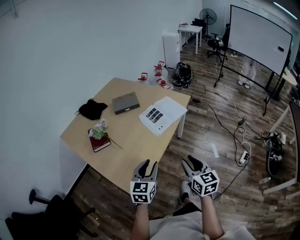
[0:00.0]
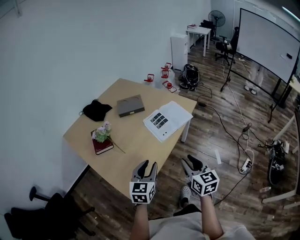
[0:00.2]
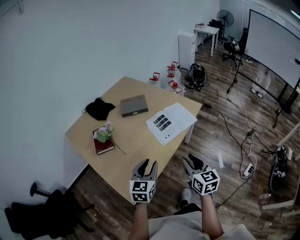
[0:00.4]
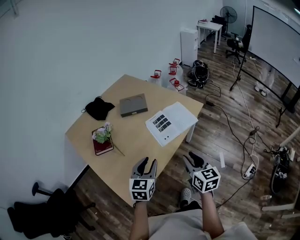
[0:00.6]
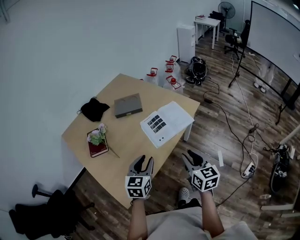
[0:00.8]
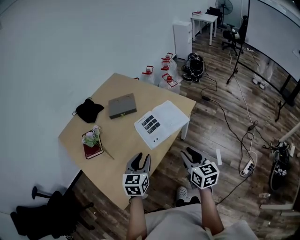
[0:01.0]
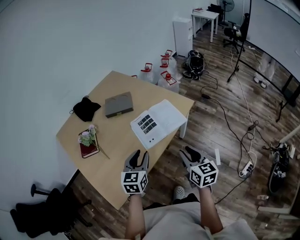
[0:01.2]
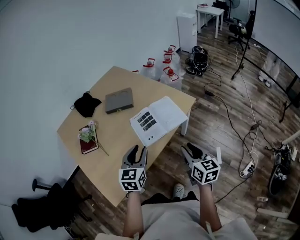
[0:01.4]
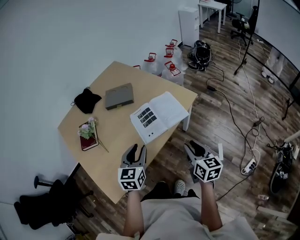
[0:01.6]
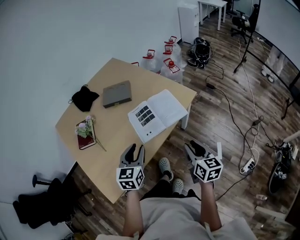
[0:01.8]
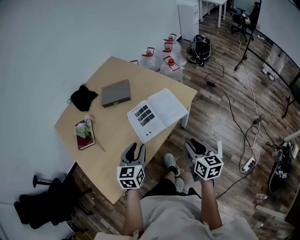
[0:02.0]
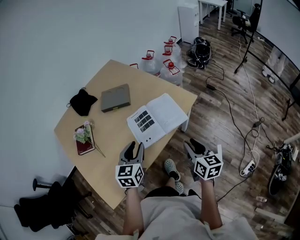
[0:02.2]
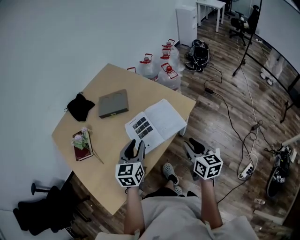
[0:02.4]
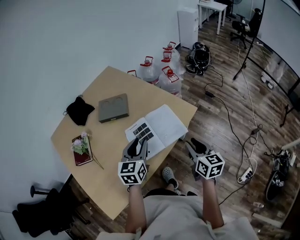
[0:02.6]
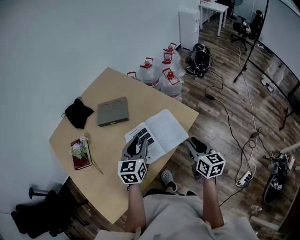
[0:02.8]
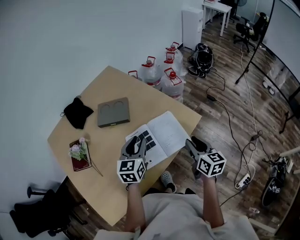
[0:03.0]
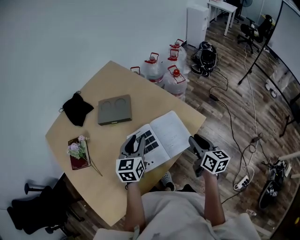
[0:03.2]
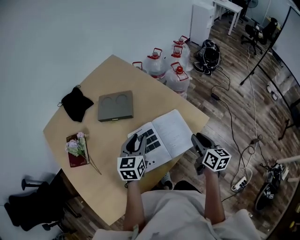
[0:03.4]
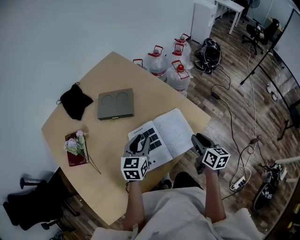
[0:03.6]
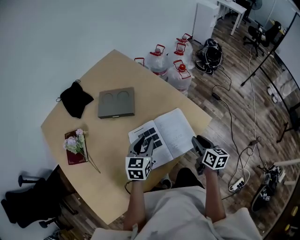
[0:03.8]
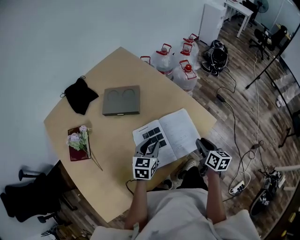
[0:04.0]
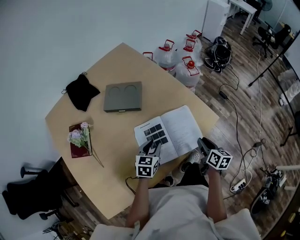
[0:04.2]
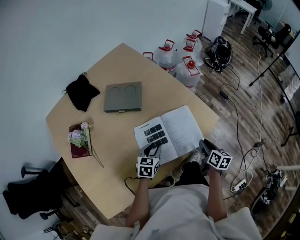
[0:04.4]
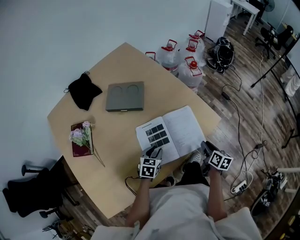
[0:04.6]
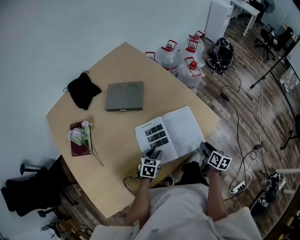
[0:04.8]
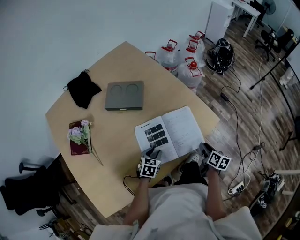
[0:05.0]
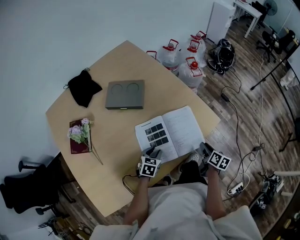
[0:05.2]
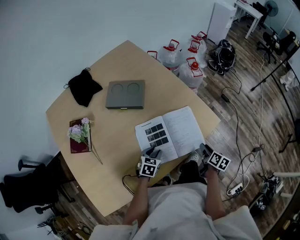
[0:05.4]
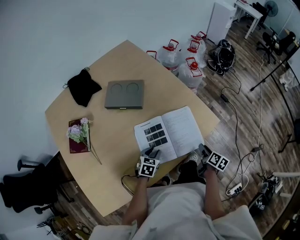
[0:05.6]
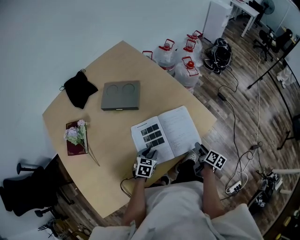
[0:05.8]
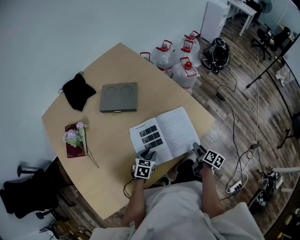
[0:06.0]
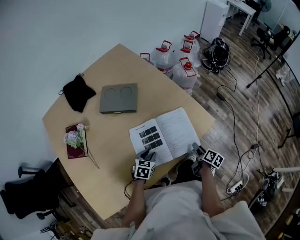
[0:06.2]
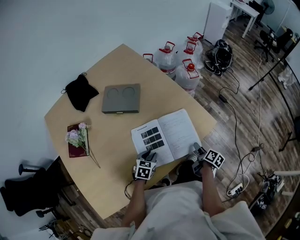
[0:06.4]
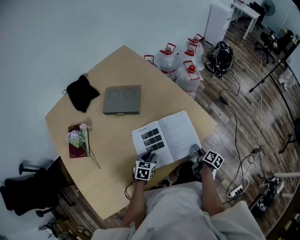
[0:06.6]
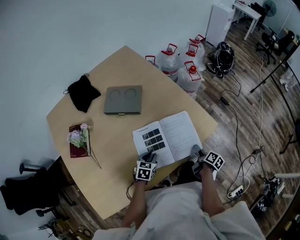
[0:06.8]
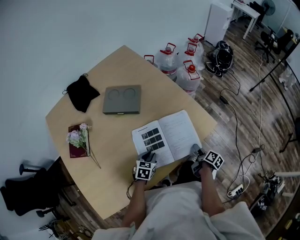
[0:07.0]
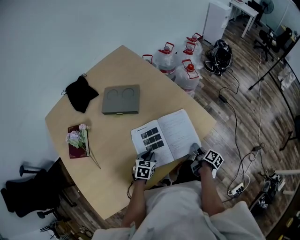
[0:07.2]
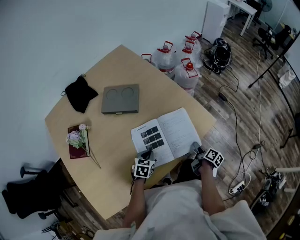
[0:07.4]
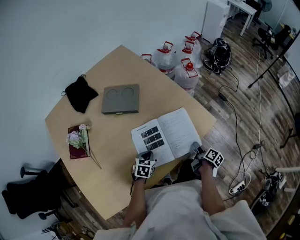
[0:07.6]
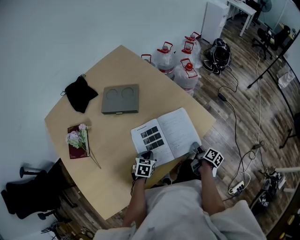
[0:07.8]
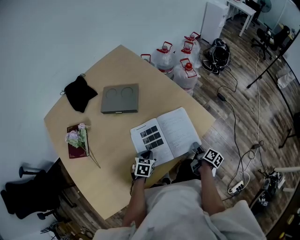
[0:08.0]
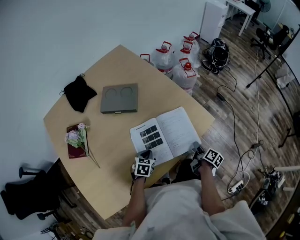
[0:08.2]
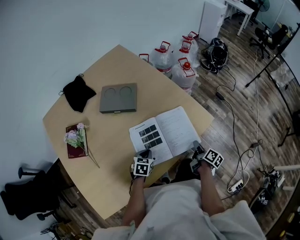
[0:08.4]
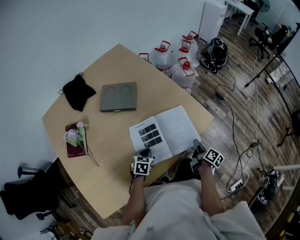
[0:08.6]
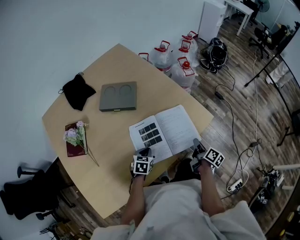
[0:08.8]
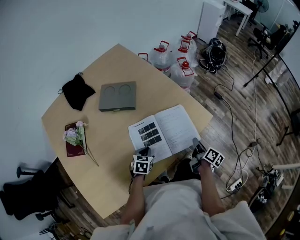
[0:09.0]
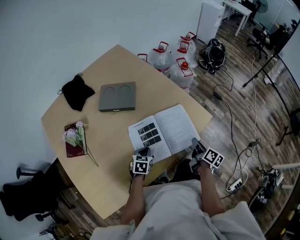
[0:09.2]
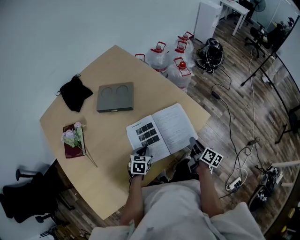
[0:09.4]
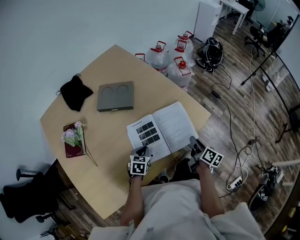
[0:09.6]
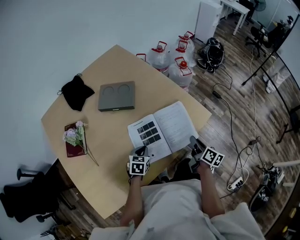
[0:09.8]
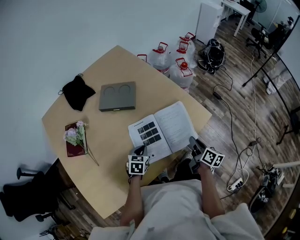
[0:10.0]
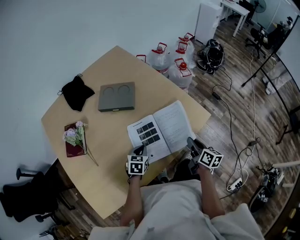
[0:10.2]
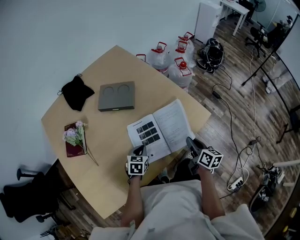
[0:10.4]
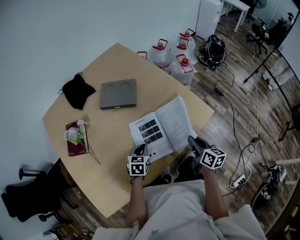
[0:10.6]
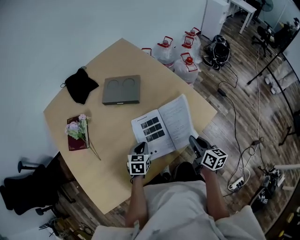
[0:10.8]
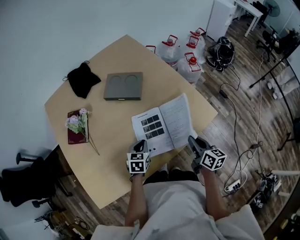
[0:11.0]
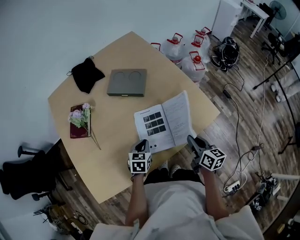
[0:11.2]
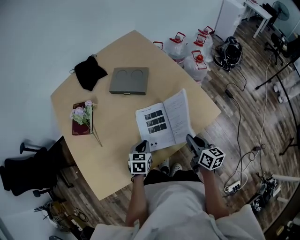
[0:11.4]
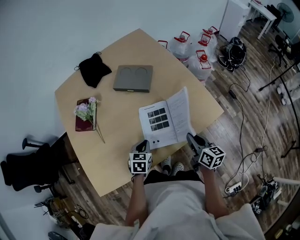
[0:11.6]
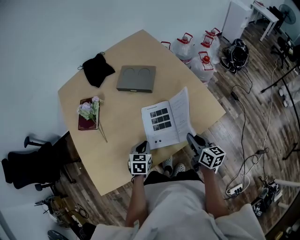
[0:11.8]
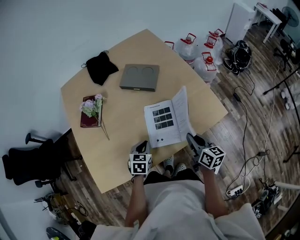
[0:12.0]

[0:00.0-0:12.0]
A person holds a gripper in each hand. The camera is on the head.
0.0 to 1.6 s: Both grippers move forward and to the right, approximately 30 cm.
1.6 to 3.0 s: The grippers both shift forward by about 25 cm.
3.0 to 4.4 s: The two grippers go about 20 cm downward. The left gripper changes its angle by some 20 degrees.
4.4 to 6.0 s: Both grippers travel together downward, approximately 5 cm. The right gripper swivels roughly 20 degrees, and opens its fingers.
6.0 to 7.6 s: The left gripper closes.
7.6 to 9.0 s: The right gripper moves upward, some 5 cm, and closes its fingers.
9.0 to 10.4 s: The right gripper shifts some 5 cm upward, and changes its angle by about 30 degrees.
10.4 to 12.0 s: The left gripper is displaced backward and to the left by about 10 cm. Meanwhile the right gripper heads to the left, covering roughly 5 cm.

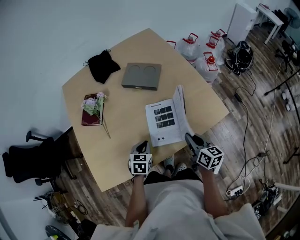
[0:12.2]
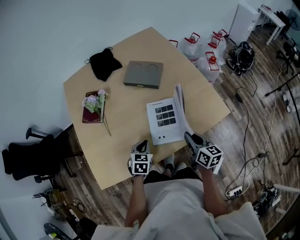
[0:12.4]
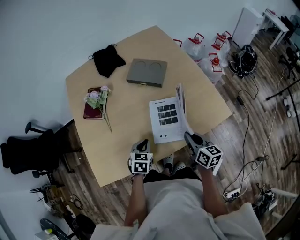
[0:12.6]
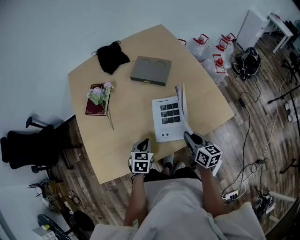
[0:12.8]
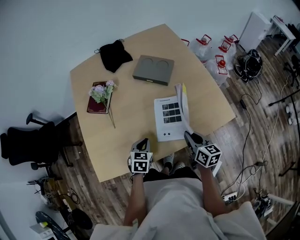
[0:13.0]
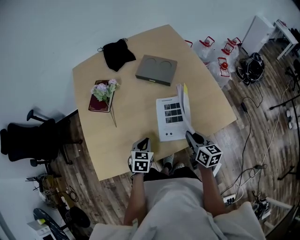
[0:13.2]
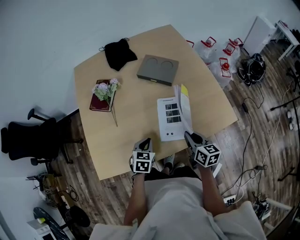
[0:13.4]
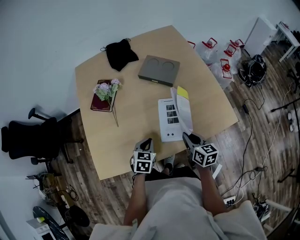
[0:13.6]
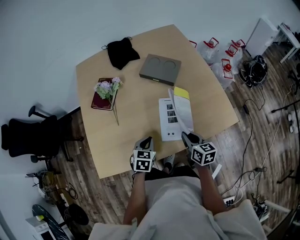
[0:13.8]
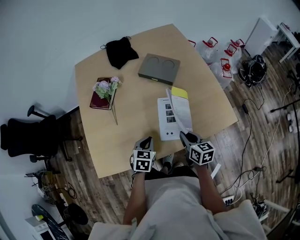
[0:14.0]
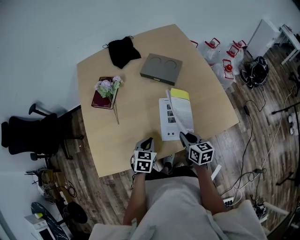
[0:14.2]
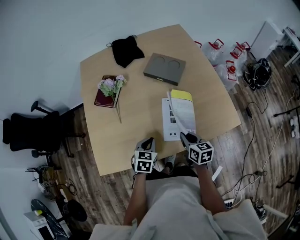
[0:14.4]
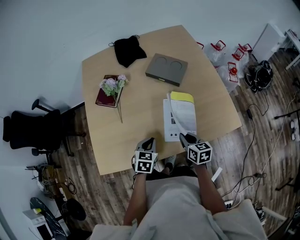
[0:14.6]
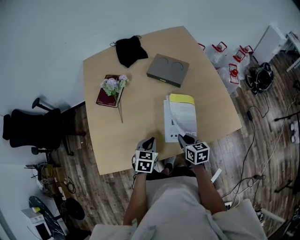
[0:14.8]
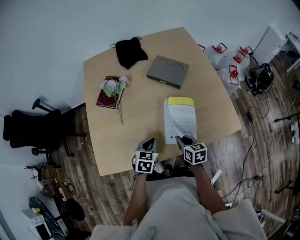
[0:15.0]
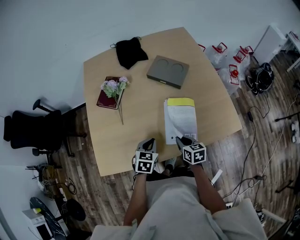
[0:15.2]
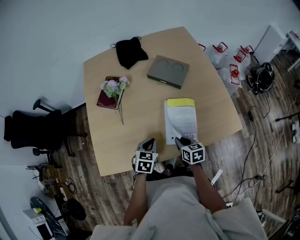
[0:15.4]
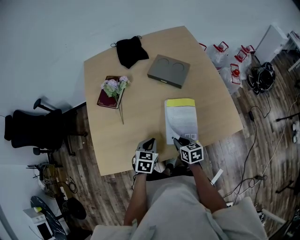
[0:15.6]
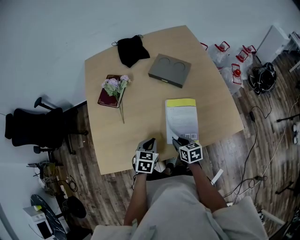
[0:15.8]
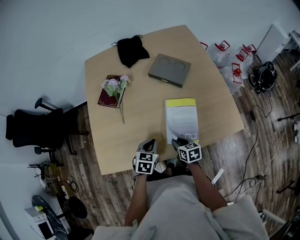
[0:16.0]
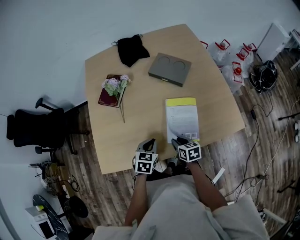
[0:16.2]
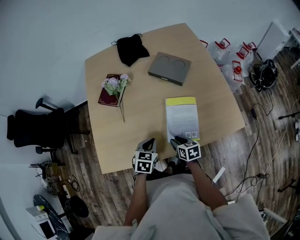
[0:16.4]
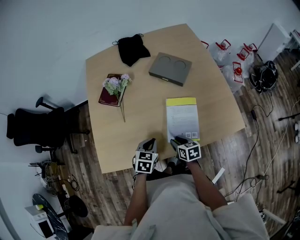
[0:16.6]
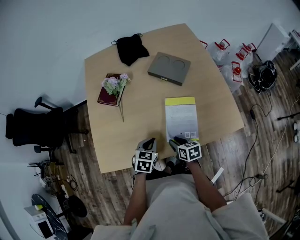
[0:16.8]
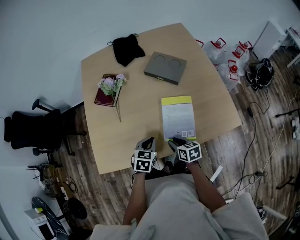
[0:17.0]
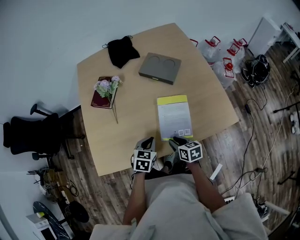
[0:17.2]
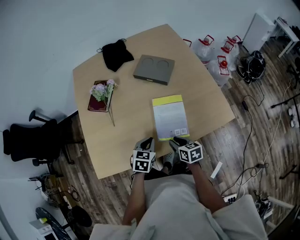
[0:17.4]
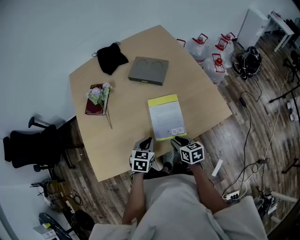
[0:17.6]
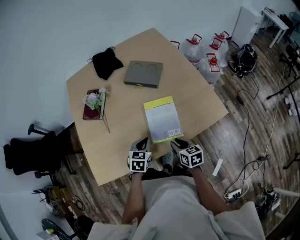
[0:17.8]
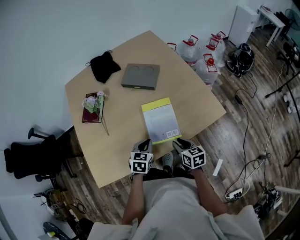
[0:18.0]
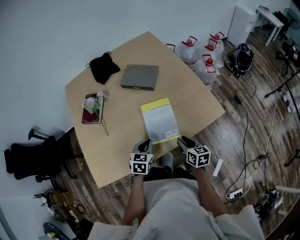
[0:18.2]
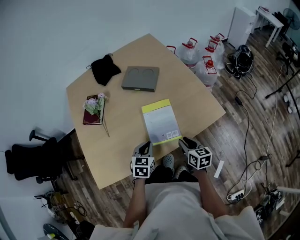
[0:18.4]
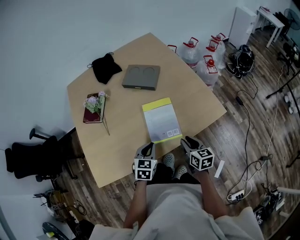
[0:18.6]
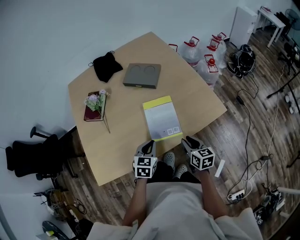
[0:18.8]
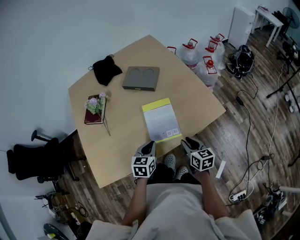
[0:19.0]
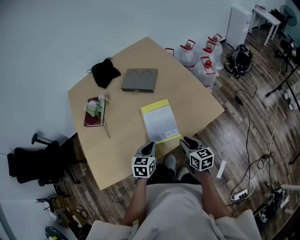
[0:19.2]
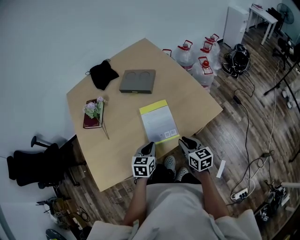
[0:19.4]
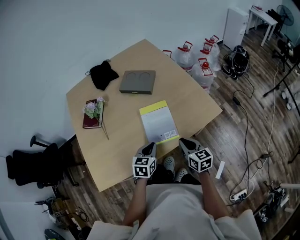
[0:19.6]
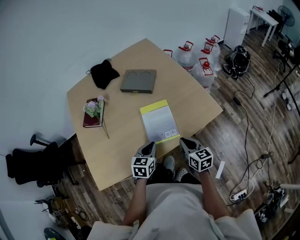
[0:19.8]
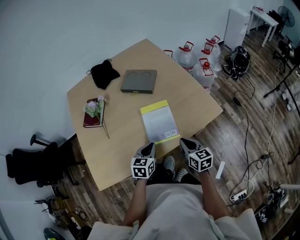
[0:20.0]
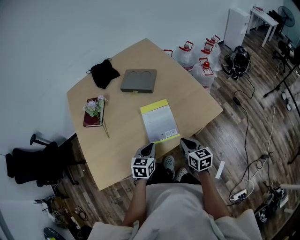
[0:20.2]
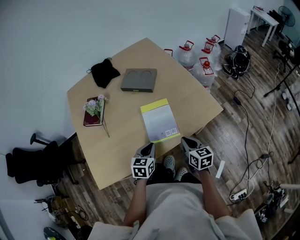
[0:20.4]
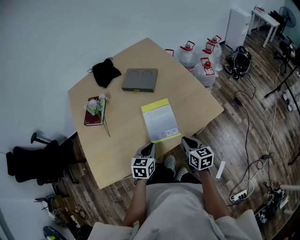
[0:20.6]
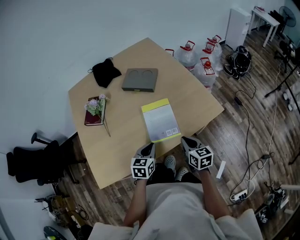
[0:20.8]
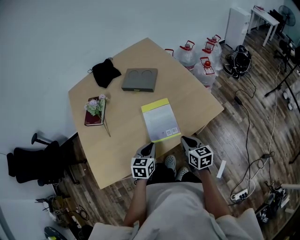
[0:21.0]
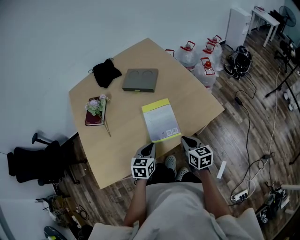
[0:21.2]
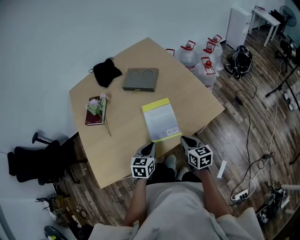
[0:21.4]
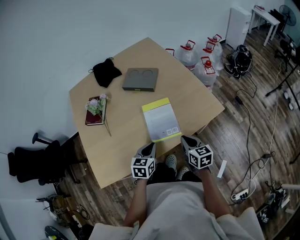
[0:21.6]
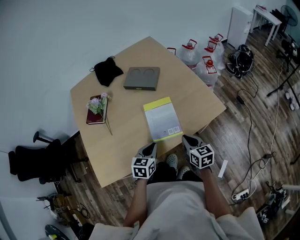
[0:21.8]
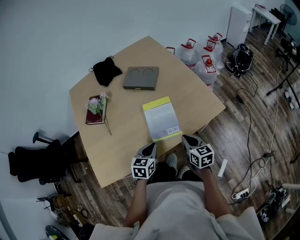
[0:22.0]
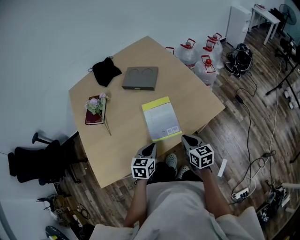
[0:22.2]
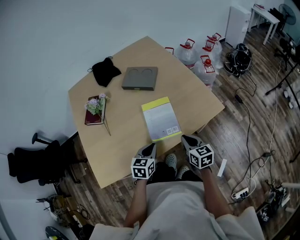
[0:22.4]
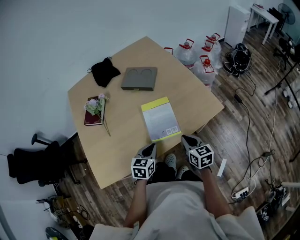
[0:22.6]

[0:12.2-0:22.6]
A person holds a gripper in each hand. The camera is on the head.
12.2 to 13.6 s: The right gripper is displaced to the left by roughly 5 cm.
13.6 to 15.2 s: The right gripper travels downward and to the left by some 10 cm.
15.2 to 16.6 s: The right gripper shifts by approximately 5 cm.
16.6 to 18.2 s: The right gripper goes about 15 cm to the right and upward, and rotates some 20 degrees, while the left gripper travels to the right by about 10 cm.
18.2 to 21.2 s: The grippers make only small movements.
21.2 to 22.6 s: Neither gripper changes place.

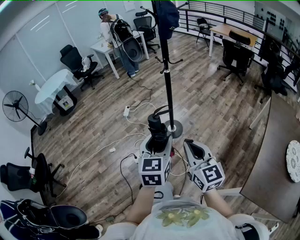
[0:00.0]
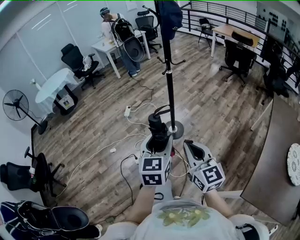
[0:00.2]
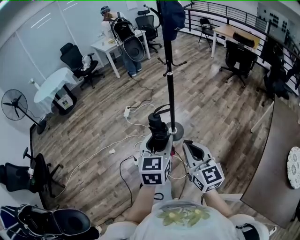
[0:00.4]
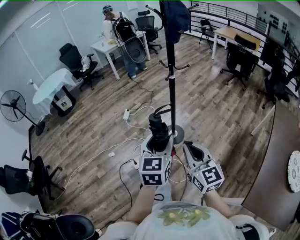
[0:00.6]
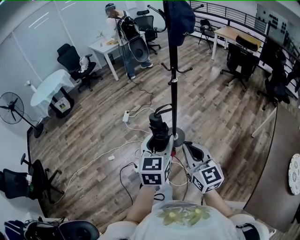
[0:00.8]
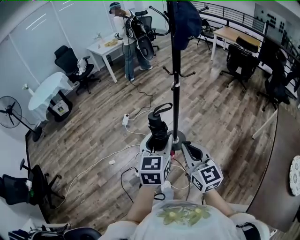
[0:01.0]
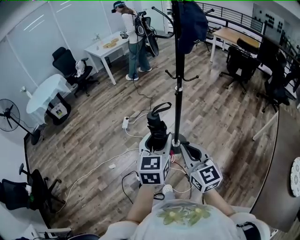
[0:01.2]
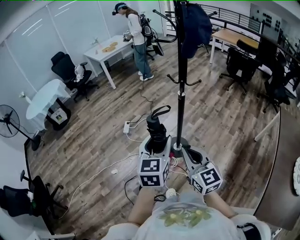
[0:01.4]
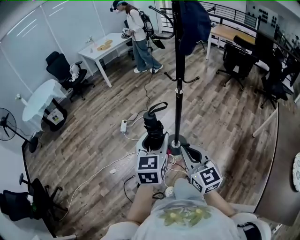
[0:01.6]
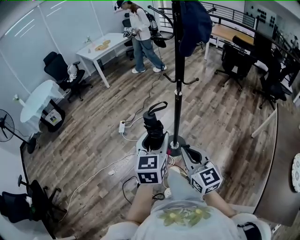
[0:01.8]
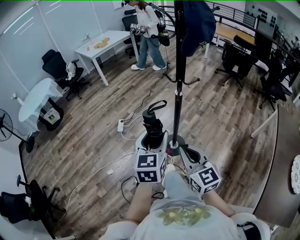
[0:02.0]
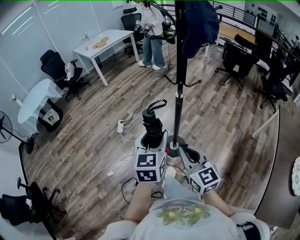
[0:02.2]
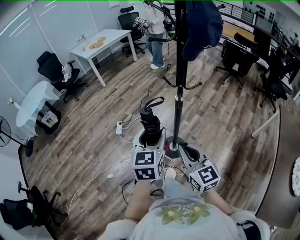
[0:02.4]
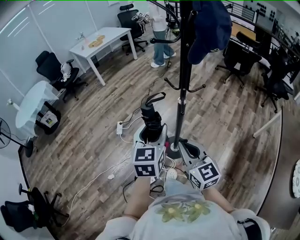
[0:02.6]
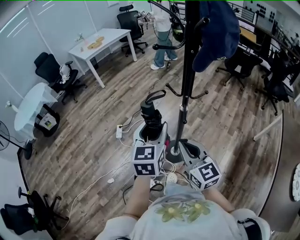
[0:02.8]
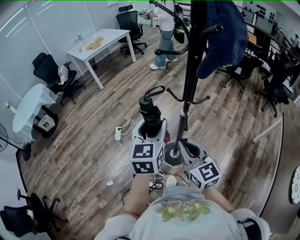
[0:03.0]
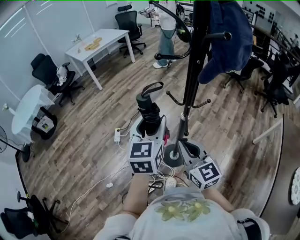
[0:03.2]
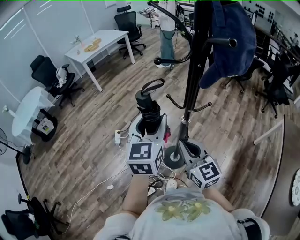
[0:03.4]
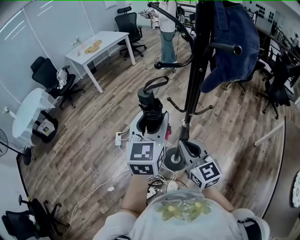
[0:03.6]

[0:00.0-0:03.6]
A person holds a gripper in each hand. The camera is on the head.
0.0 to 1.8 s: The grippers both shift forward by about 30 cm.
1.8 to 3.6 s: The grippers both shift forward by some 30 cm.
